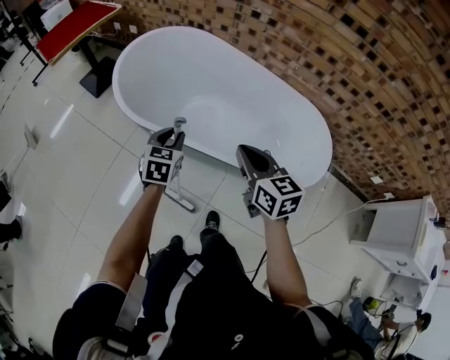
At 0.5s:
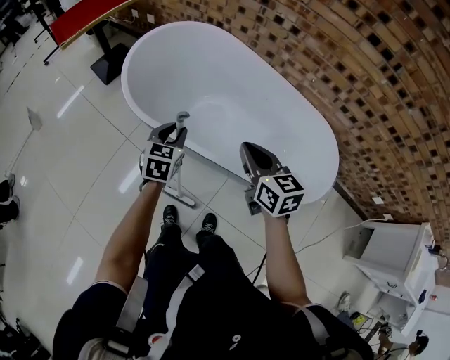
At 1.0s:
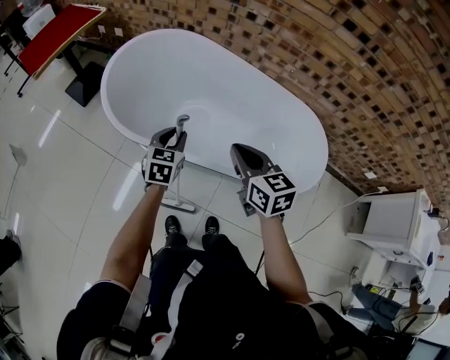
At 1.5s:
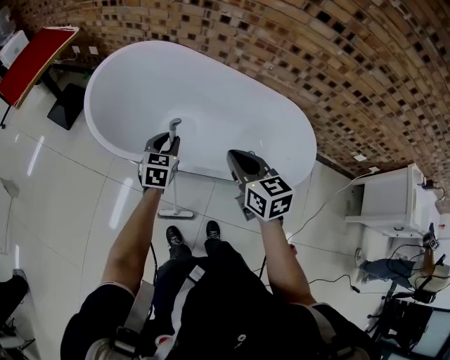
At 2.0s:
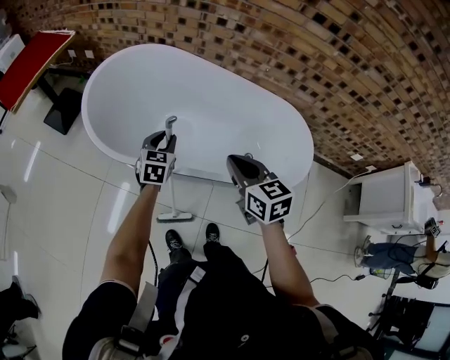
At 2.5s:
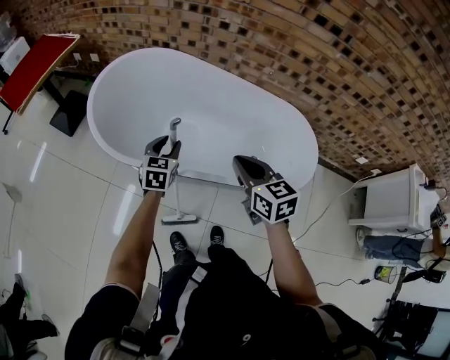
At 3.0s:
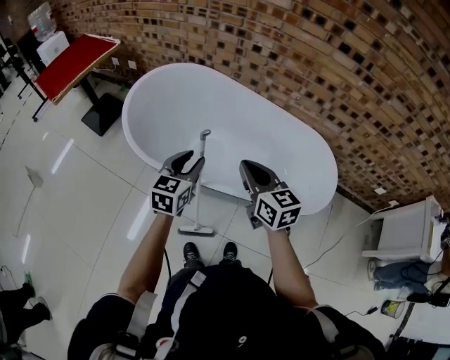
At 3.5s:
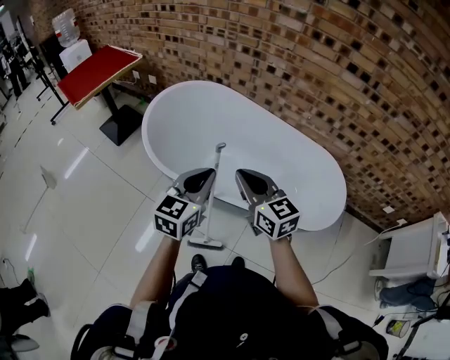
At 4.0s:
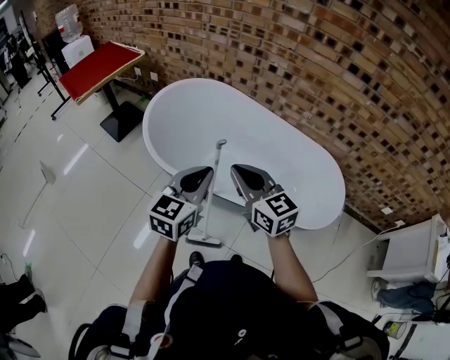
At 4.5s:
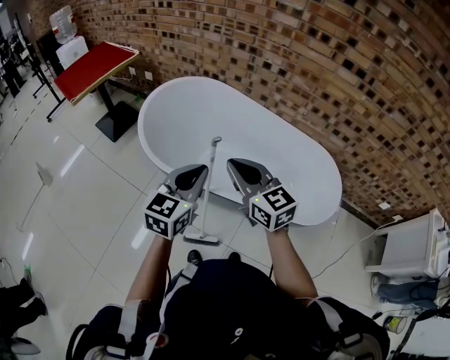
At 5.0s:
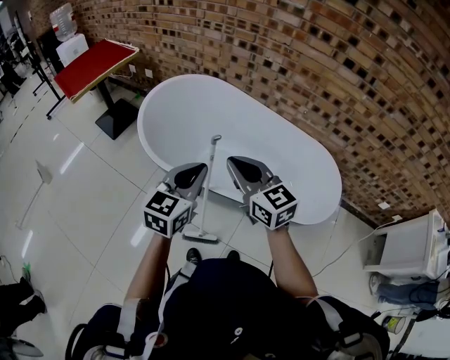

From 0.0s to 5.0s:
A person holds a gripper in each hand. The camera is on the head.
From 0.0s to 2.5s: The left gripper heads forward, covering approximately 10 cm, while the right gripper is displaced forward by roughly 5 cm.
From 2.5s to 5.0s: The right gripper heads to the left and upward, covering about 15 cm, and turns by about 30 degrees, while the left gripper travels upward and backward by some 25 cm, and closes up.

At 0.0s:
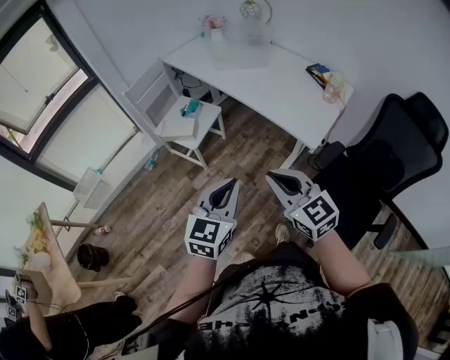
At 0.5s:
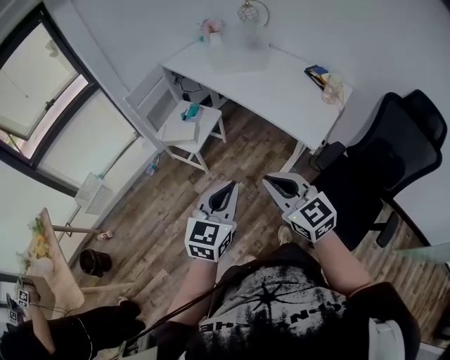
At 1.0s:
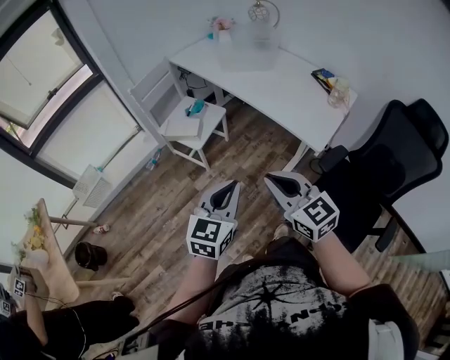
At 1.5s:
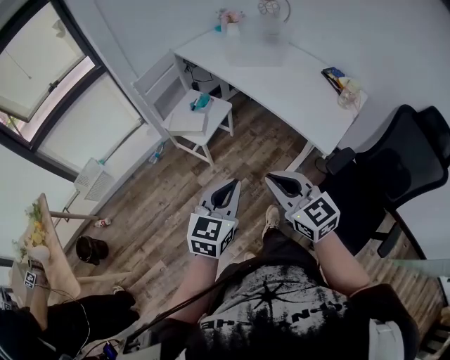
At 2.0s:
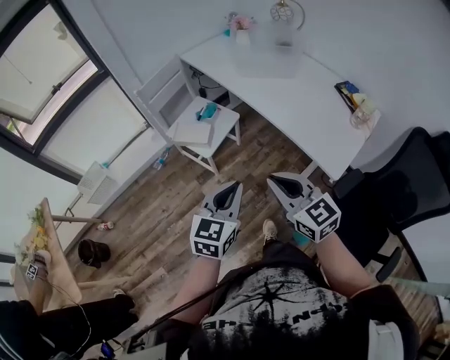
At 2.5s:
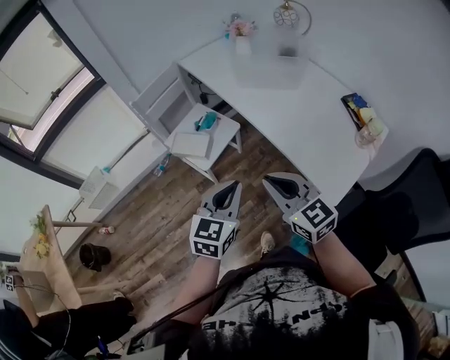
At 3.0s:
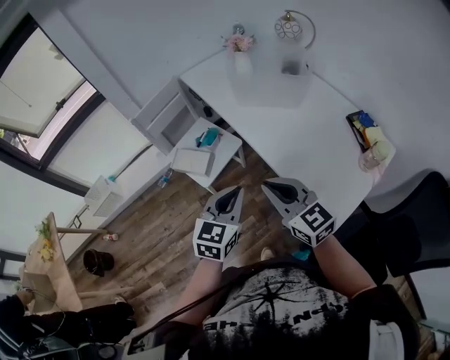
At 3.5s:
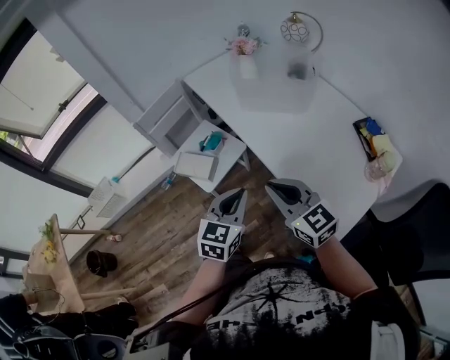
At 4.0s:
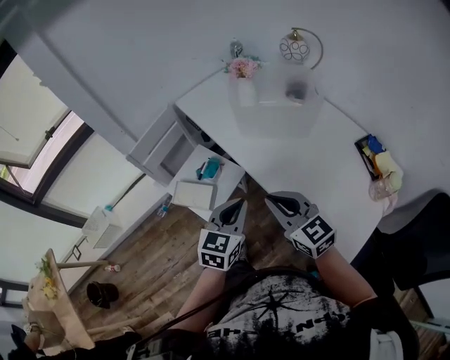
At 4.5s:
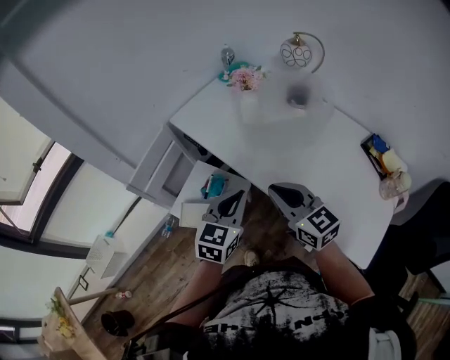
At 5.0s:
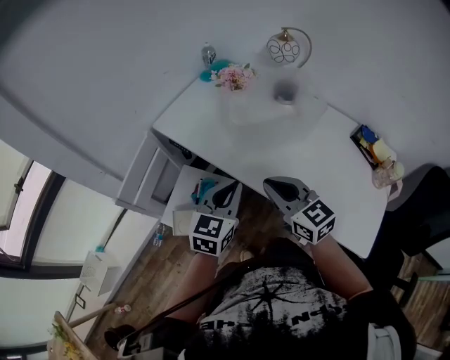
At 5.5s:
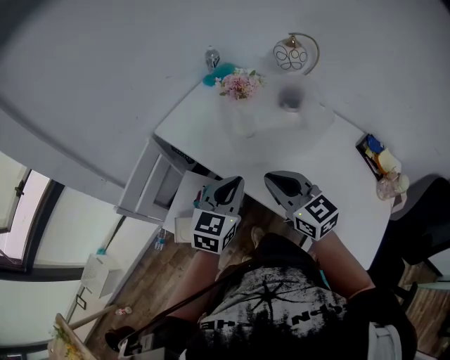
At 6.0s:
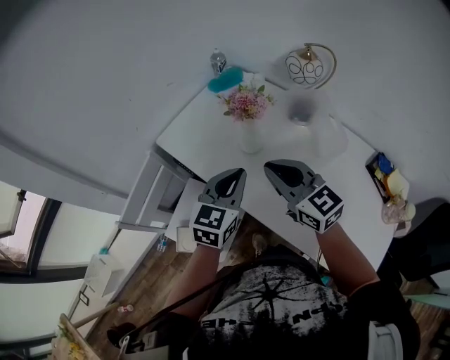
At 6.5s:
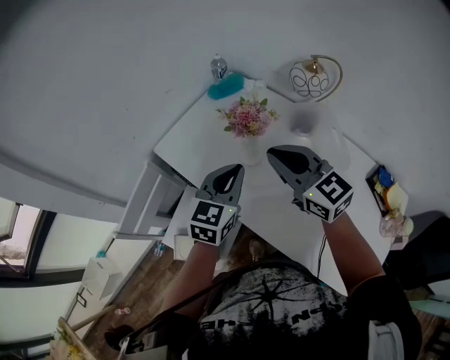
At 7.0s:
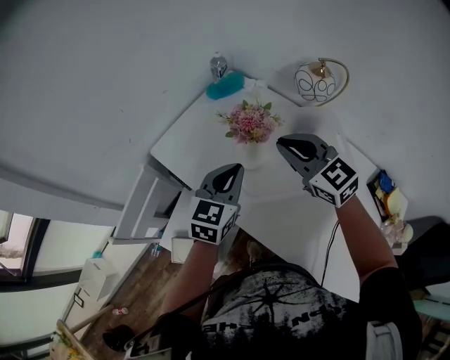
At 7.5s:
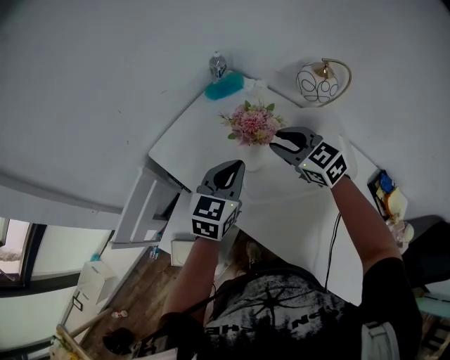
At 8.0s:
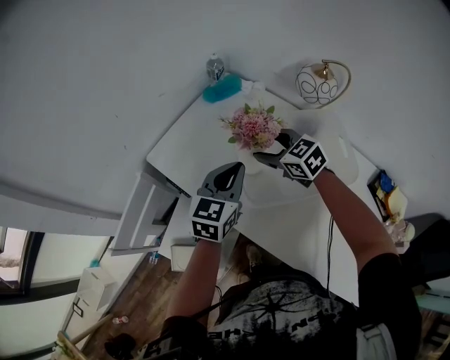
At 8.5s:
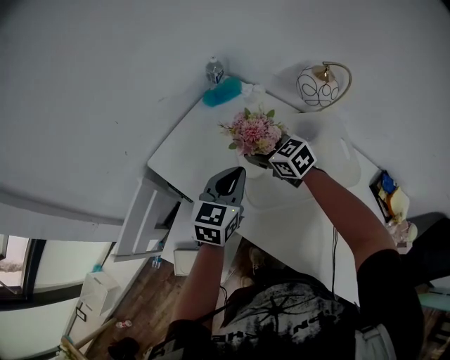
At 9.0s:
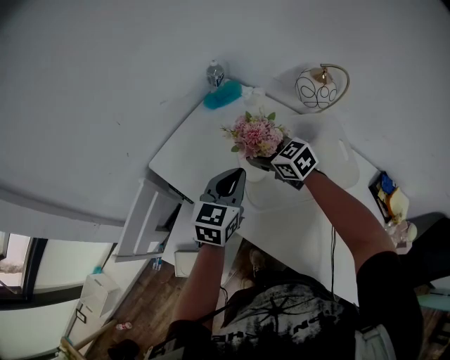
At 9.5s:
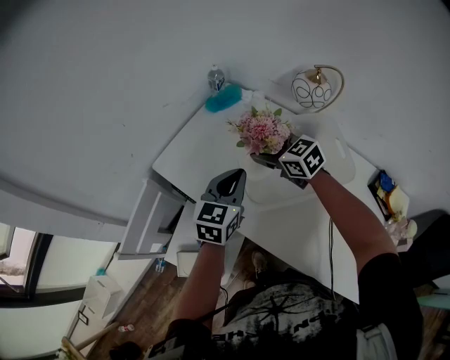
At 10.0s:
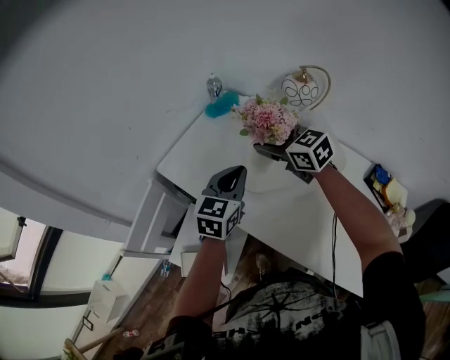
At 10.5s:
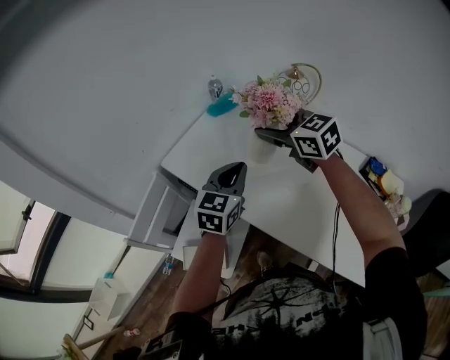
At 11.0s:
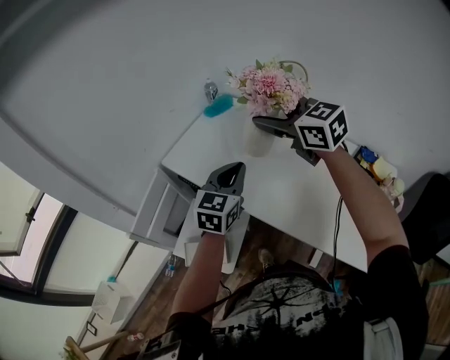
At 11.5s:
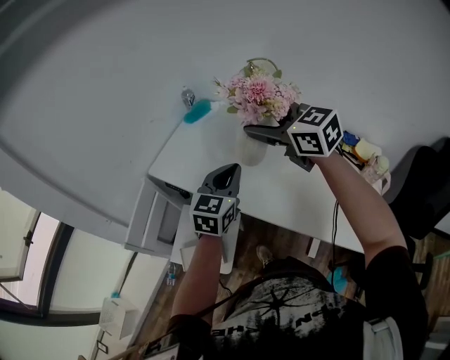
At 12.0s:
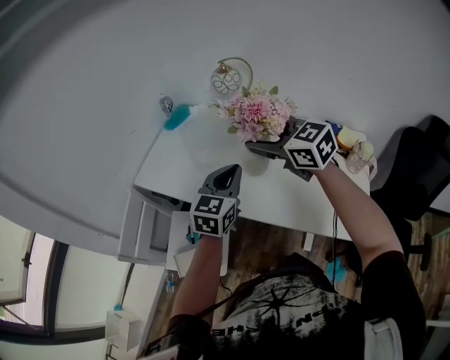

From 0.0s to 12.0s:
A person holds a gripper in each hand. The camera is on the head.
From 0.0s to 2.0s: The grippers both shift forward by some 15 cm.
From 2.0s to 4.0s: Both grippers travel together forward, some 30 cm.
From 4.0s to 6.0s: The two grippers go some 30 cm forward.
From 6.0s to 8.0s: The left gripper is displaced forward by some 10 cm; the right gripper travels forward and downward by about 25 cm, rotates some 30 degrees, and opens its fingers.
From 8.0s to 10.0s: The left gripper moves approximately 5 cm; the right gripper heads upward, covering approximately 10 cm.
From 10.0s to 12.0s: The left gripper heads backward and to the right, covering some 20 cm; the right gripper shifts some 25 cm backward, to the right and upward.

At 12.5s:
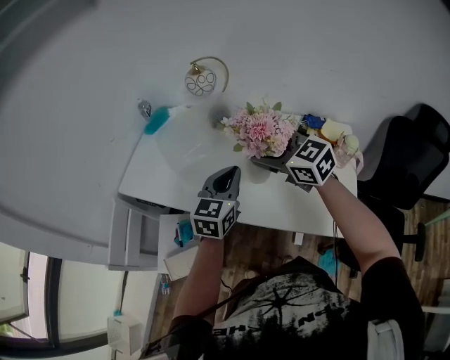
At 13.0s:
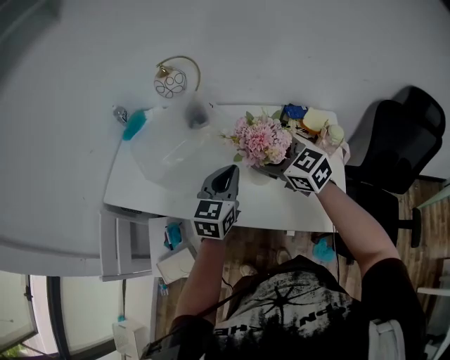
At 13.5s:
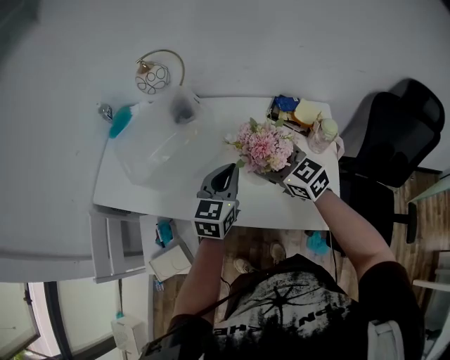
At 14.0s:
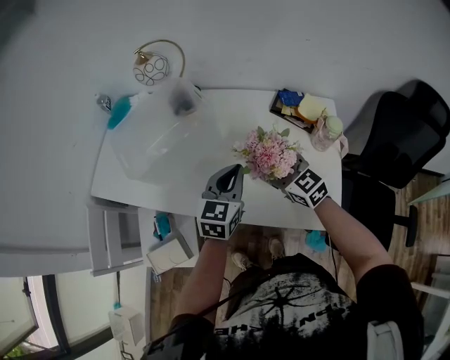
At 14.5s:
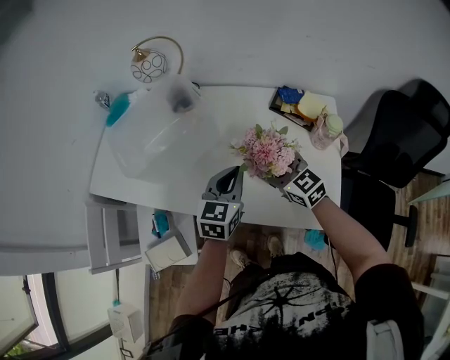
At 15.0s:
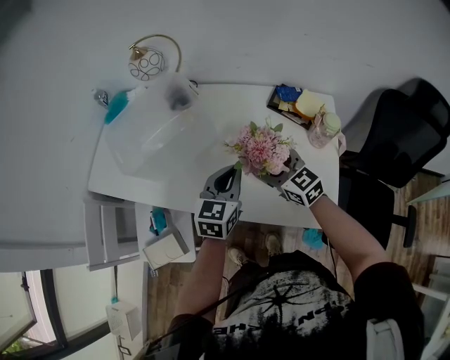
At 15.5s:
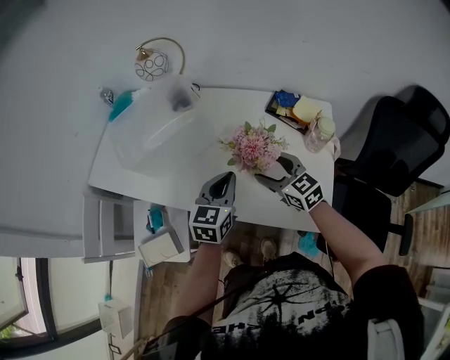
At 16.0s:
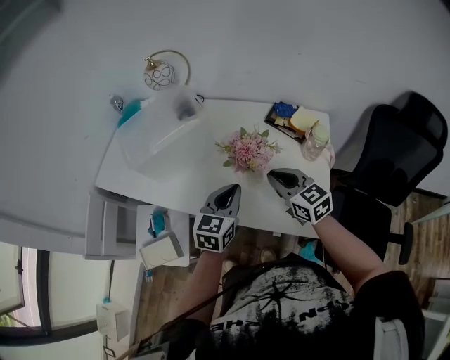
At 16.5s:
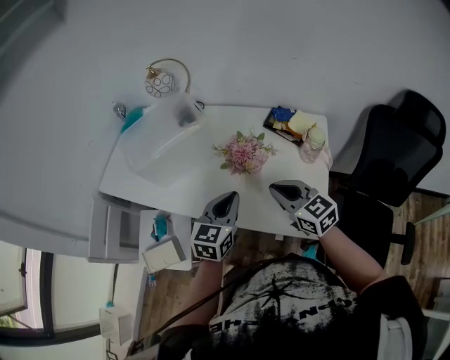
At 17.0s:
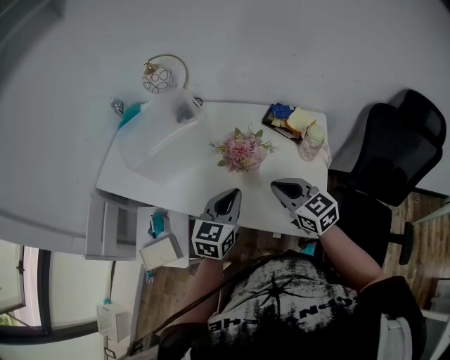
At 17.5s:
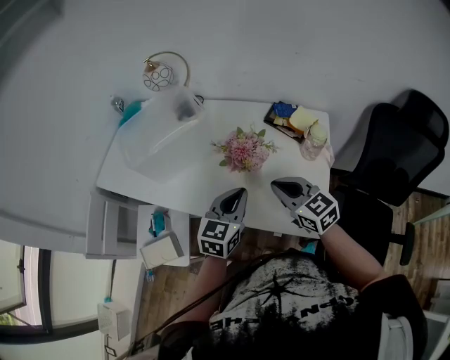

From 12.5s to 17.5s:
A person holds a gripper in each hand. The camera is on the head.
From 12.5s to 15.0s: The right gripper travels downward and to the right by approximately 25 cm; the left gripper heads to the right and downward, covering about 15 cm.
From 15.0s to 17.5s: The right gripper shifts approximately 10 cm backward and to the right, and closes up. Meanwhile the left gripper is displaced backward by about 10 cm.

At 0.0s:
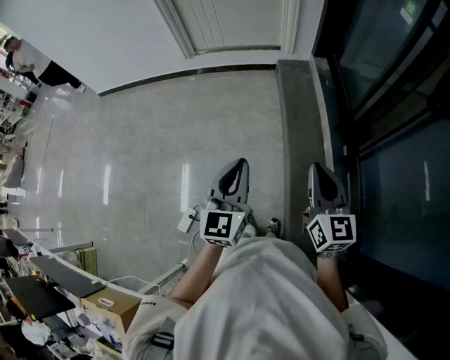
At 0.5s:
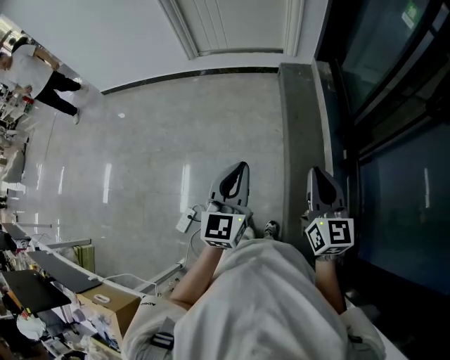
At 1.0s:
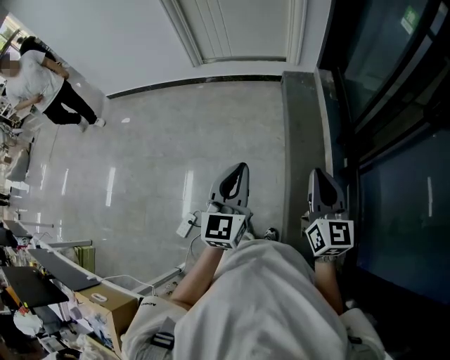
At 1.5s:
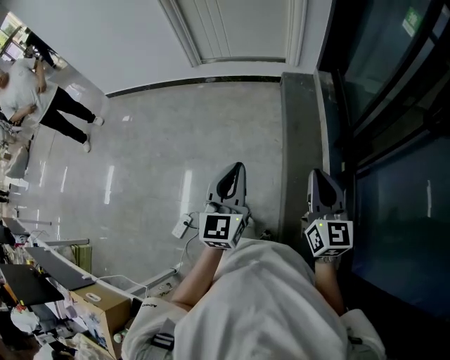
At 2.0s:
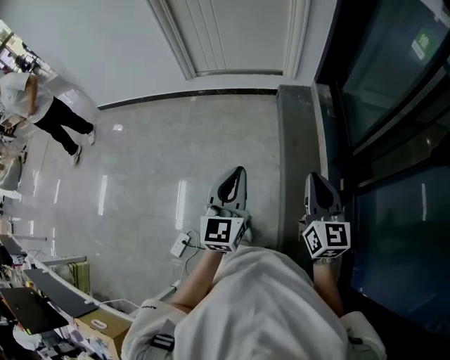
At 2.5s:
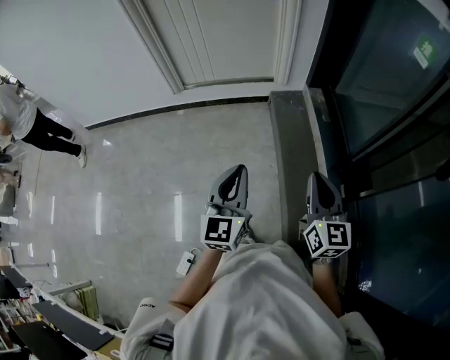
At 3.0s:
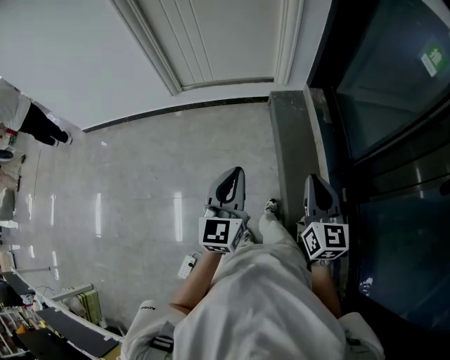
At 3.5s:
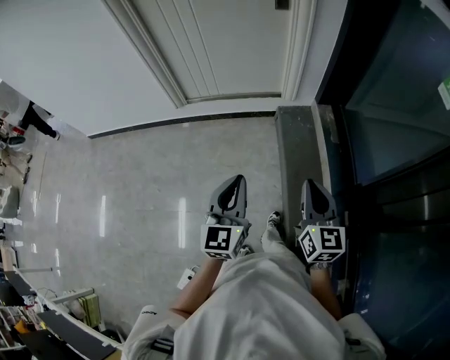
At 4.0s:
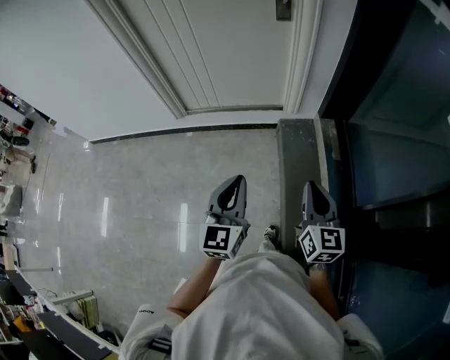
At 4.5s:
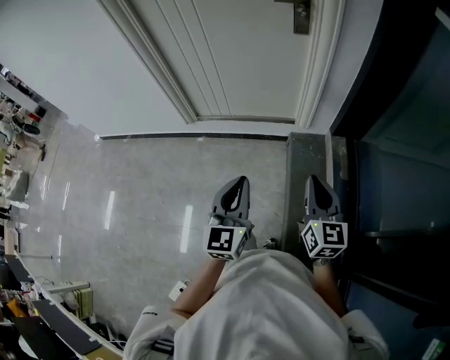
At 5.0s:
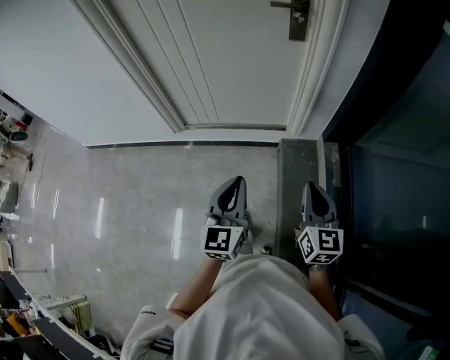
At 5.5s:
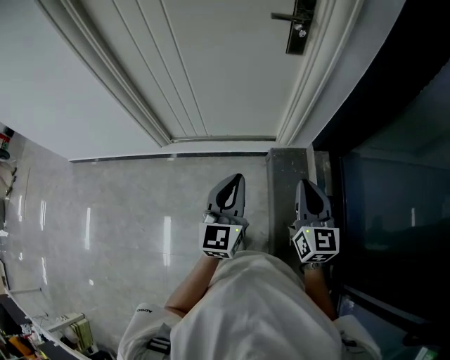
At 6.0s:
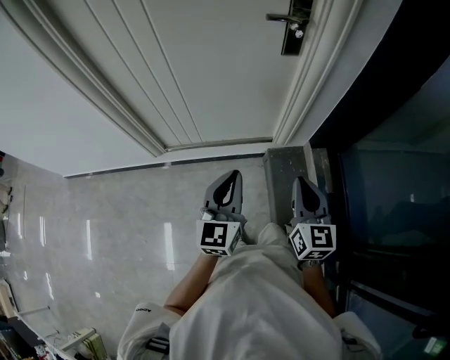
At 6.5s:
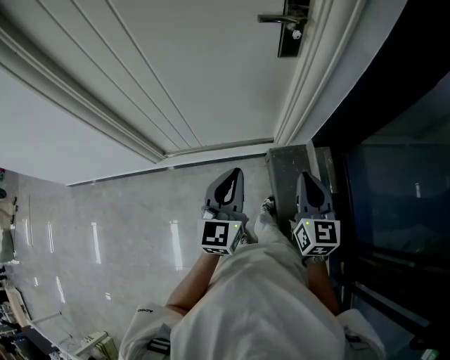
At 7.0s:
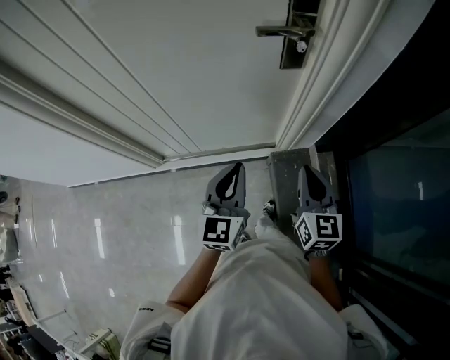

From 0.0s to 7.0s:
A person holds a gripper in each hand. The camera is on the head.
From 0.0s to 2.0s: The two grippers go roughly 15 cm forward.
From 2.0s to 3.5s: Both grippers travel together forward, about 25 cm.
From 3.5s to 5.0s: The grippers both shift forward by roughly 25 cm.
From 5.0s to 7.0s: Both grippers move forward, about 35 cm.
